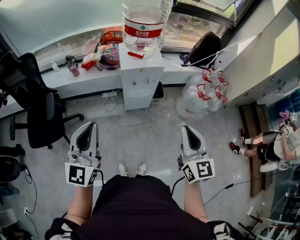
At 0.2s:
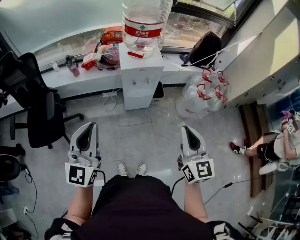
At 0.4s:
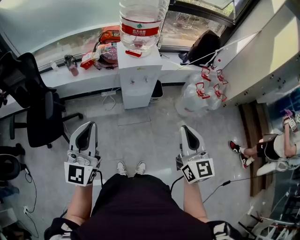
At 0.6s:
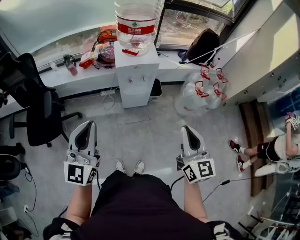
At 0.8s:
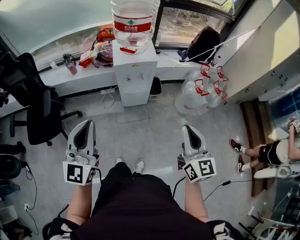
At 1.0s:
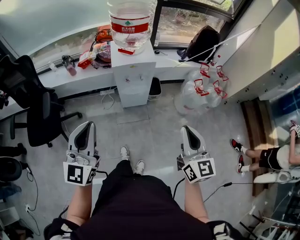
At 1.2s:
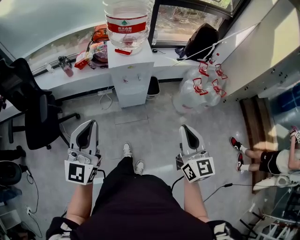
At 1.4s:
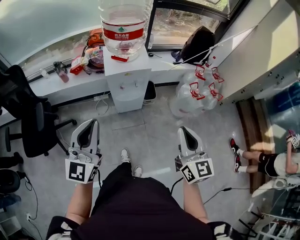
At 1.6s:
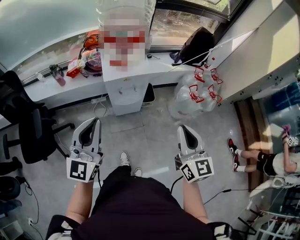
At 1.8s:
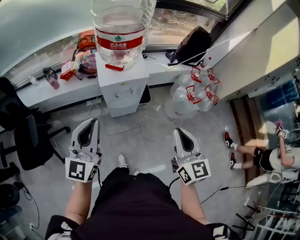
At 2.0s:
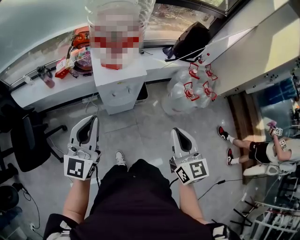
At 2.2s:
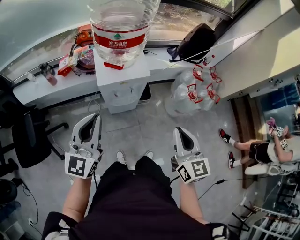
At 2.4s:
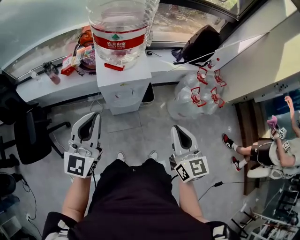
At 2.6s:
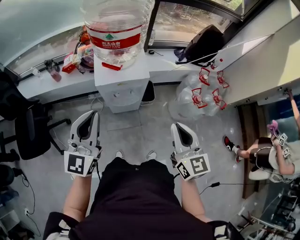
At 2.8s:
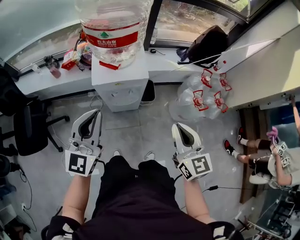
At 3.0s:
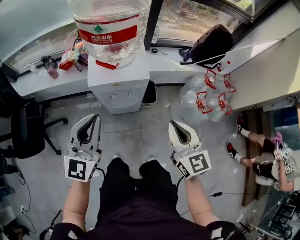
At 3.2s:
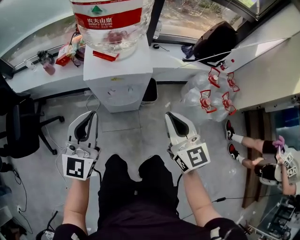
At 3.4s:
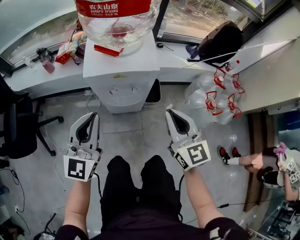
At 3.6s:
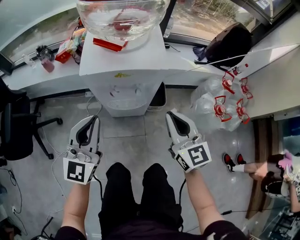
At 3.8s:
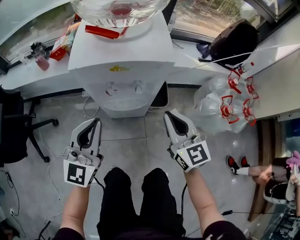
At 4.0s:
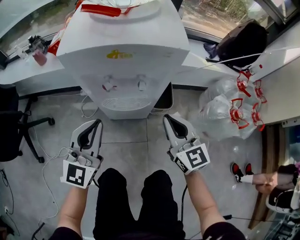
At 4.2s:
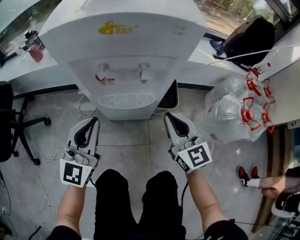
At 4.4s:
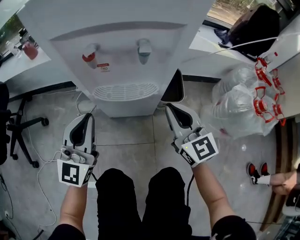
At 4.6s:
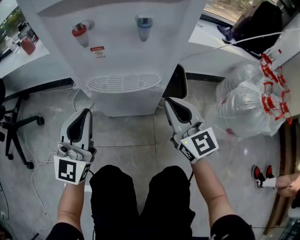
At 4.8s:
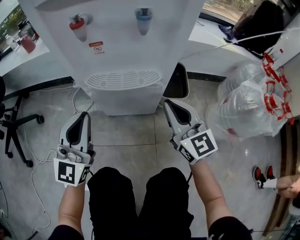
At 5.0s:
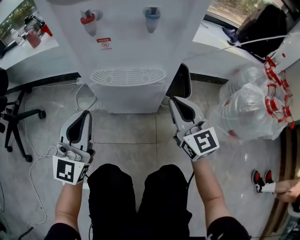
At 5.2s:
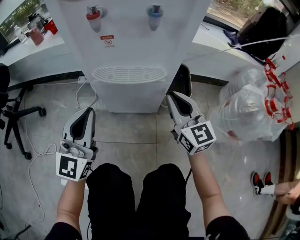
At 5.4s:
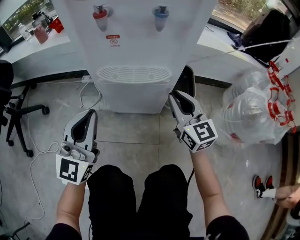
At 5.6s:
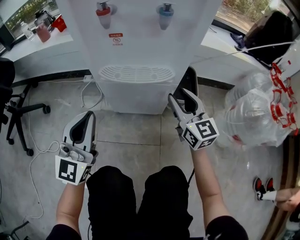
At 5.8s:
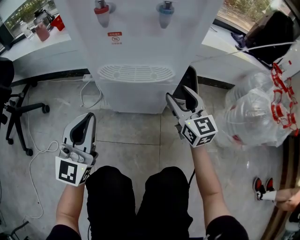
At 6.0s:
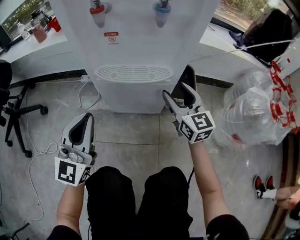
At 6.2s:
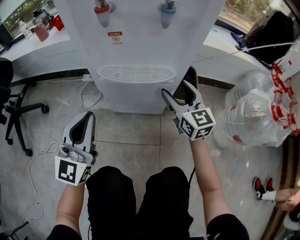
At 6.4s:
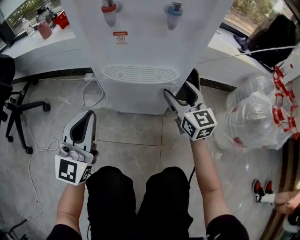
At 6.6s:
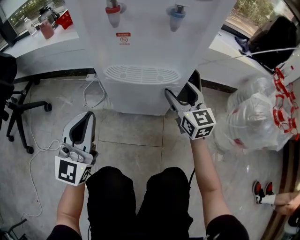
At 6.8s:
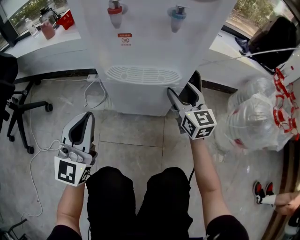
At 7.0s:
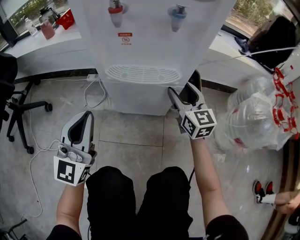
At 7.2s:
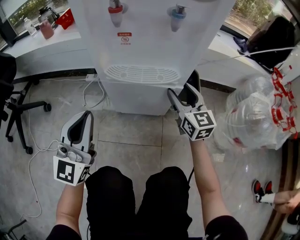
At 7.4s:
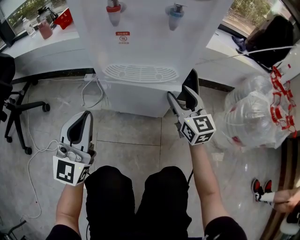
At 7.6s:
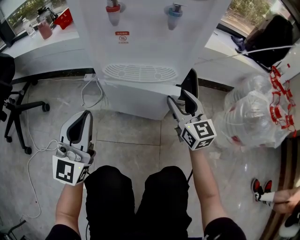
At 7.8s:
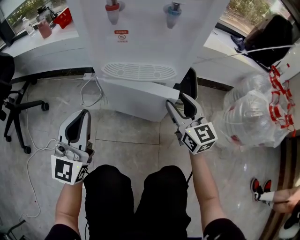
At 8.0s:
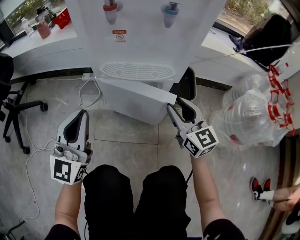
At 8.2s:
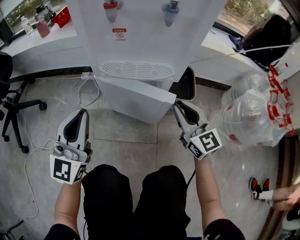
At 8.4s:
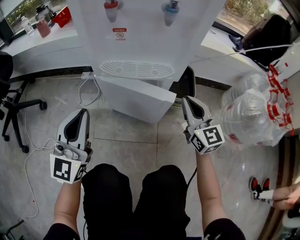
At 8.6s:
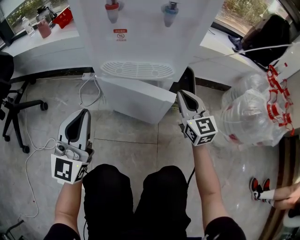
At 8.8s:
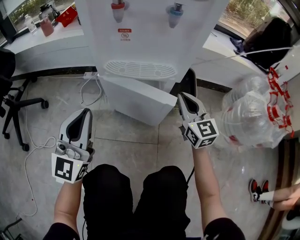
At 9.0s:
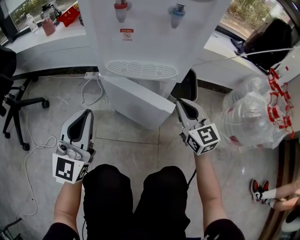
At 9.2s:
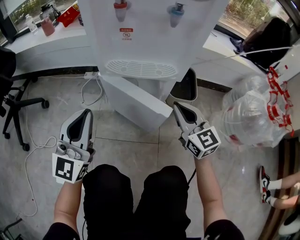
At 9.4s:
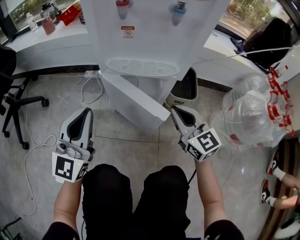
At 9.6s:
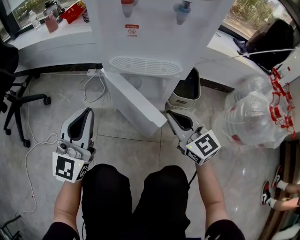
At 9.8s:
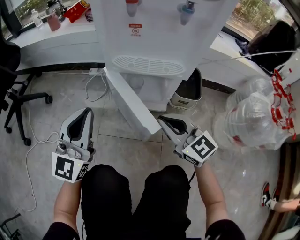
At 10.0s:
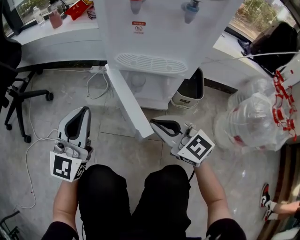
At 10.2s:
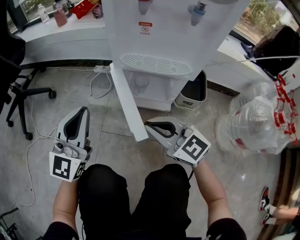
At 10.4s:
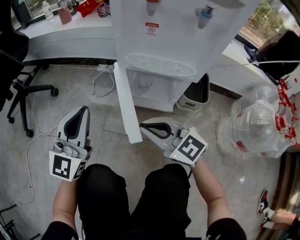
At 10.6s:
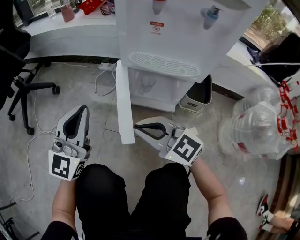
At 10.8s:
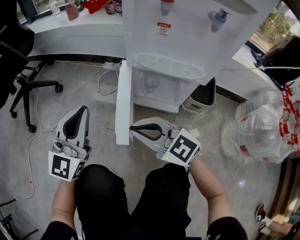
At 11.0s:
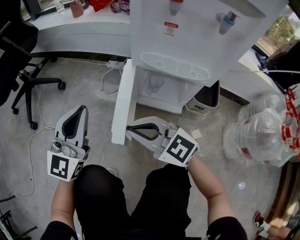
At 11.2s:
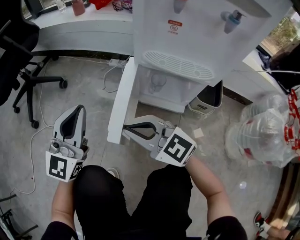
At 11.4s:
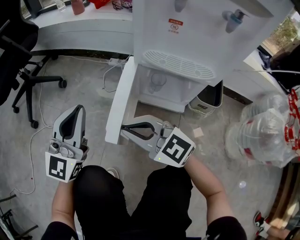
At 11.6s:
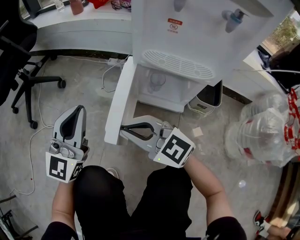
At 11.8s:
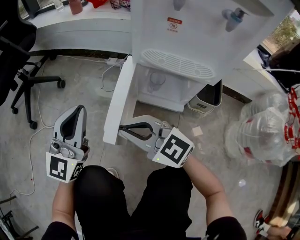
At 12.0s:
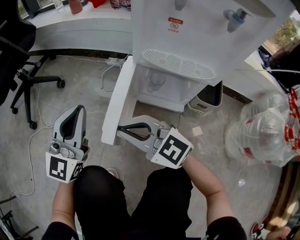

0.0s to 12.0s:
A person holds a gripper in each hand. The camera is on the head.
0.0s to 1.6s: The right gripper heads forward, covering approximately 10 cm, while the left gripper heads forward and to the right, covering approximately 15 cm.
1.6s to 3.0s: The right gripper goes about 20 cm forward and downward. Meanwhile the left gripper heads forward, downward and to the right, covering roughly 15 cm.
3.0s to 4.4s: Both grippers move downward, roughly 50 cm.
4.4s to 6.0s: The right gripper moves downward and forward, about 15 cm, and opens, while the left gripper shifts roughly 10 cm downward.
6.0s to 7.6s: The grippers make only small movements.
7.6s to 9.0s: The right gripper closes.
9.0s to 10.4s: The right gripper travels to the left by some 20 cm, and rotates roughly 40 degrees. The left gripper travels to the left by approximately 5 cm.
10.4s to 12.0s: The right gripper is displaced to the left by roughly 10 cm.

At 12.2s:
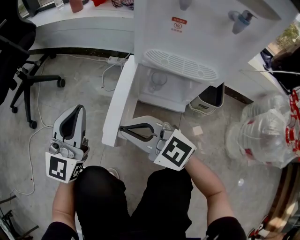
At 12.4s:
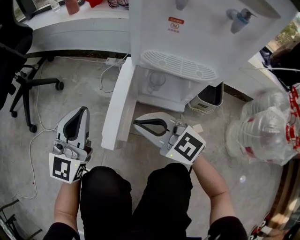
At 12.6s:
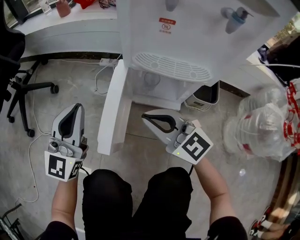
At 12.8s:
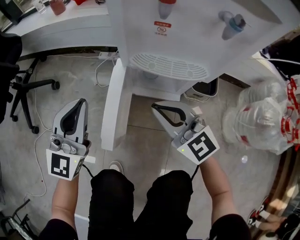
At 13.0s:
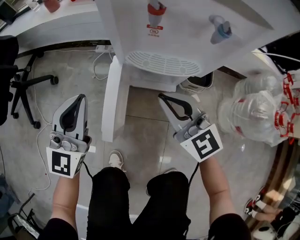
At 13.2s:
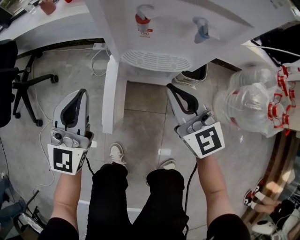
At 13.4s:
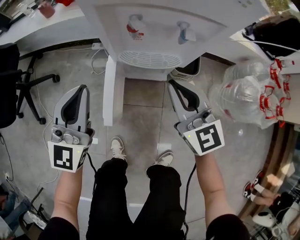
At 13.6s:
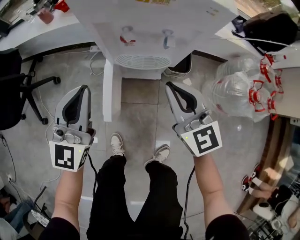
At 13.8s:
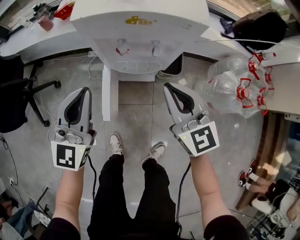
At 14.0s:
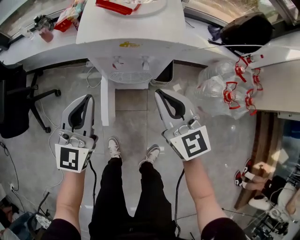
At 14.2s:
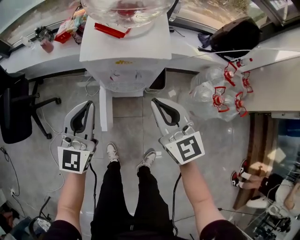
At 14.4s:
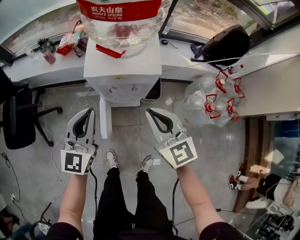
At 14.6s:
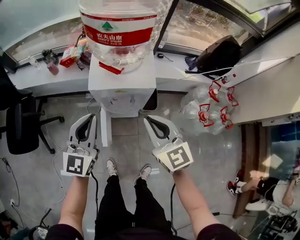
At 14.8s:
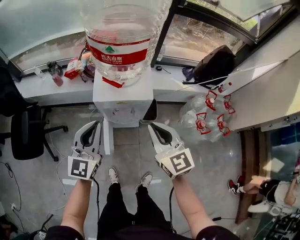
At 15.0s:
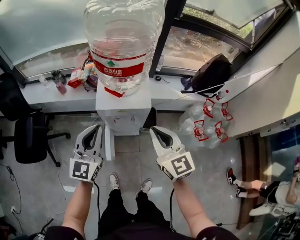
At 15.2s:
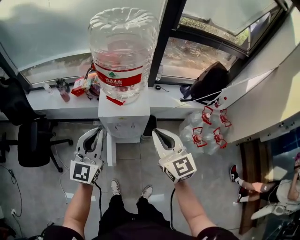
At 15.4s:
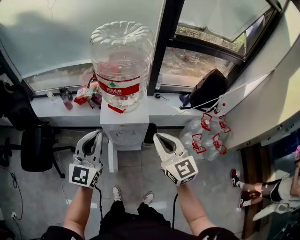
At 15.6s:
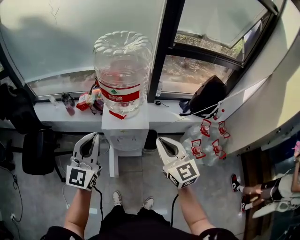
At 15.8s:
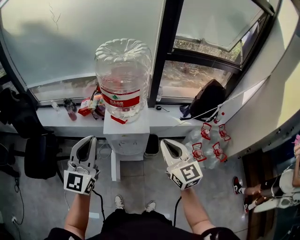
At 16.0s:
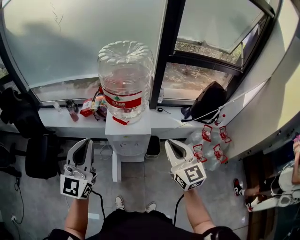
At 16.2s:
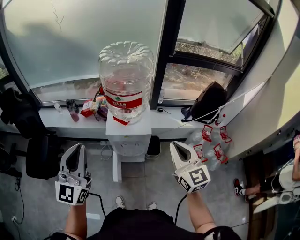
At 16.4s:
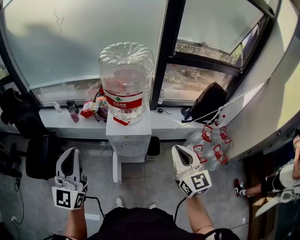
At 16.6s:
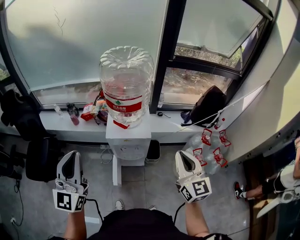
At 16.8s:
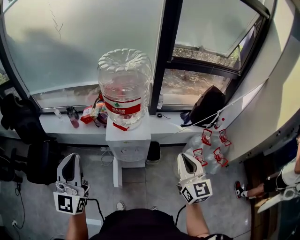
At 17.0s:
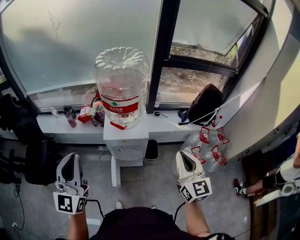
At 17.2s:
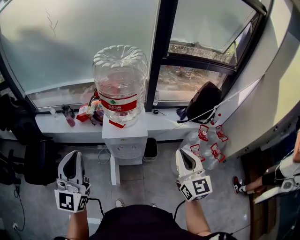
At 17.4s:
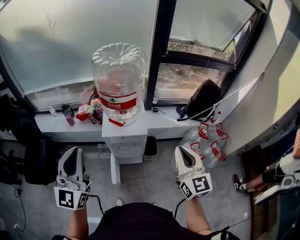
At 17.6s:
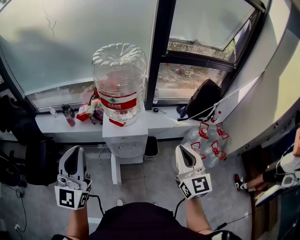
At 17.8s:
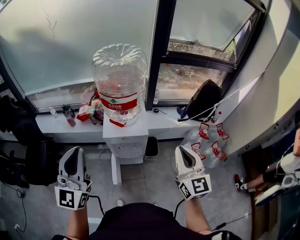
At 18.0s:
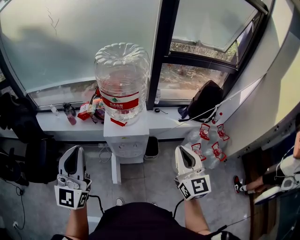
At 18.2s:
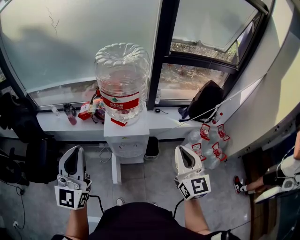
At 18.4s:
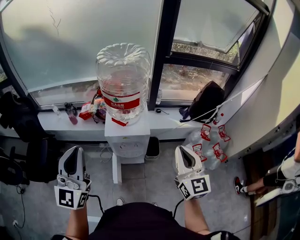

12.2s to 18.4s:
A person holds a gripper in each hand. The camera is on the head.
12.2s to 13.8s: Both grippers move upward, roughly 30 cm. The right gripper changes its angle by roughly 50 degrees.
13.8s to 15.4s: Both grippers travel together upward, some 35 cm.
15.4s to 16.8s: The left gripper travels upward, backward and to the left by some 15 cm; the right gripper is displaced to the right and backward by some 10 cm.
16.8s to 18.4s: The grippers make only small movements.

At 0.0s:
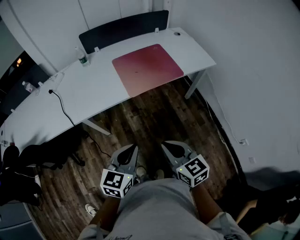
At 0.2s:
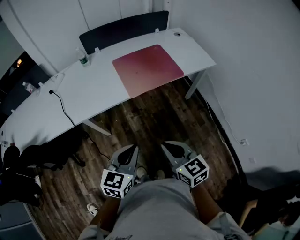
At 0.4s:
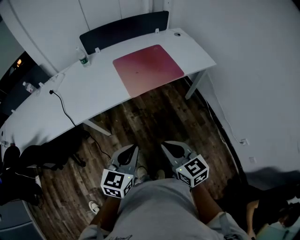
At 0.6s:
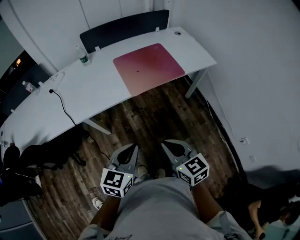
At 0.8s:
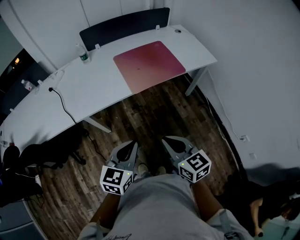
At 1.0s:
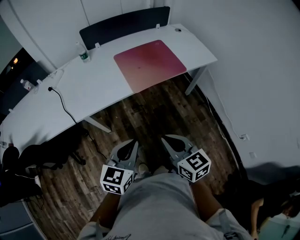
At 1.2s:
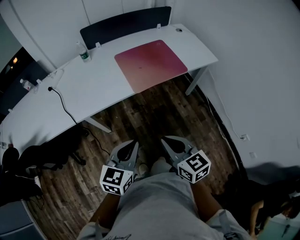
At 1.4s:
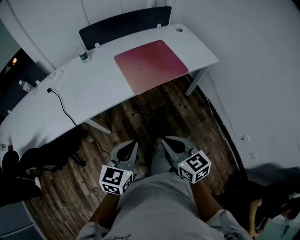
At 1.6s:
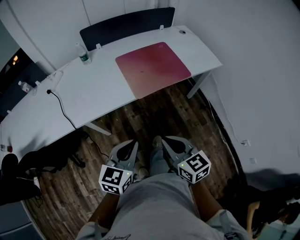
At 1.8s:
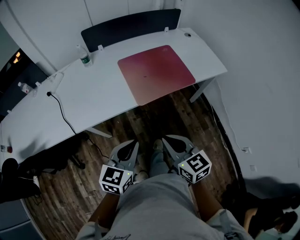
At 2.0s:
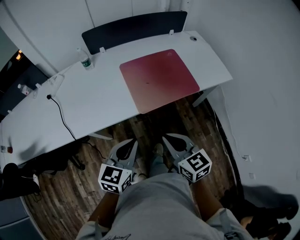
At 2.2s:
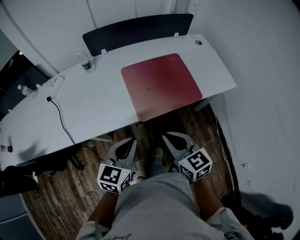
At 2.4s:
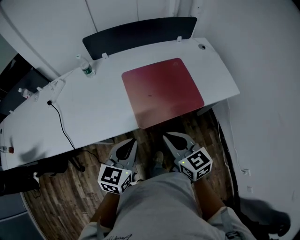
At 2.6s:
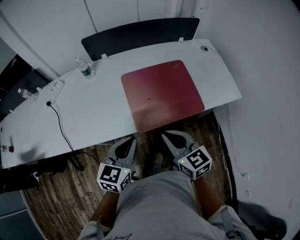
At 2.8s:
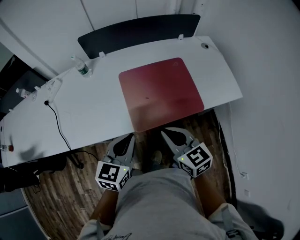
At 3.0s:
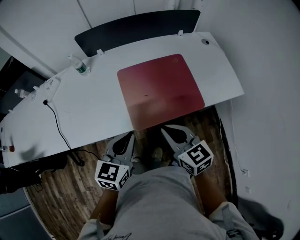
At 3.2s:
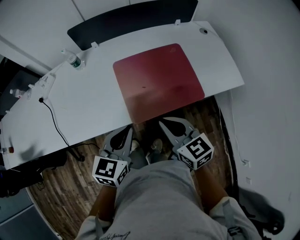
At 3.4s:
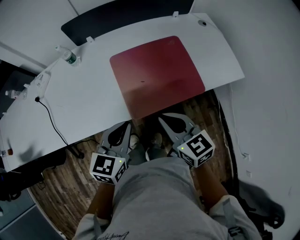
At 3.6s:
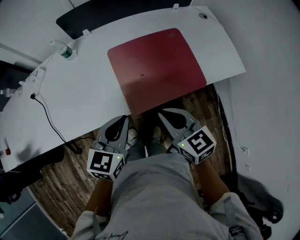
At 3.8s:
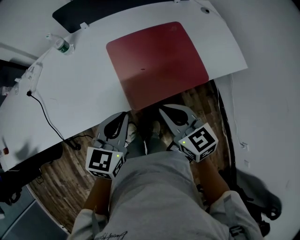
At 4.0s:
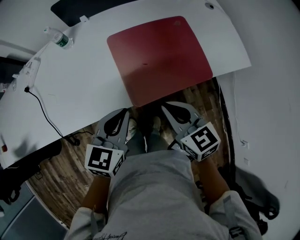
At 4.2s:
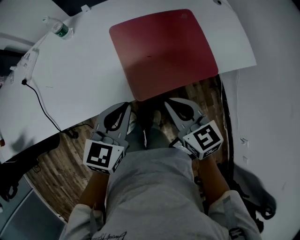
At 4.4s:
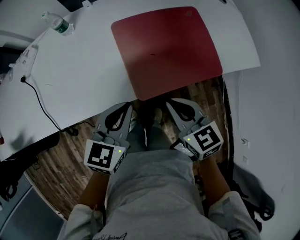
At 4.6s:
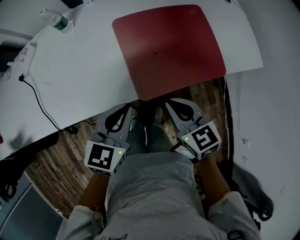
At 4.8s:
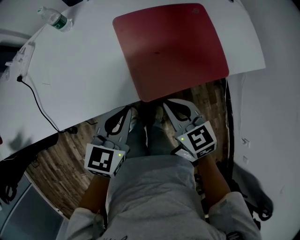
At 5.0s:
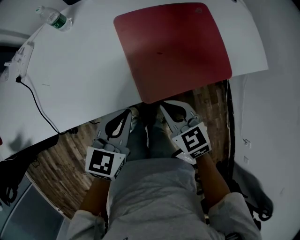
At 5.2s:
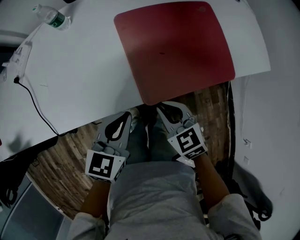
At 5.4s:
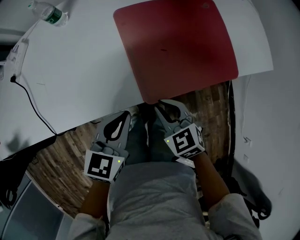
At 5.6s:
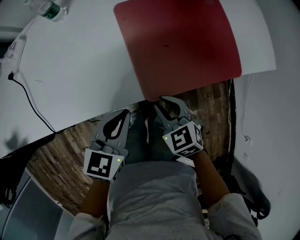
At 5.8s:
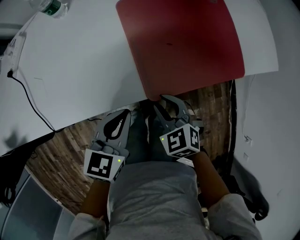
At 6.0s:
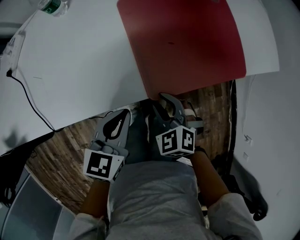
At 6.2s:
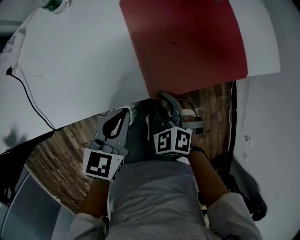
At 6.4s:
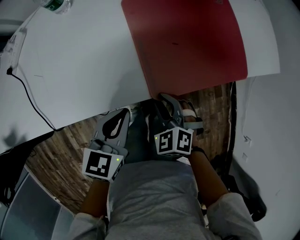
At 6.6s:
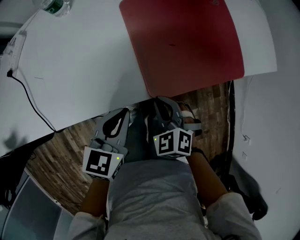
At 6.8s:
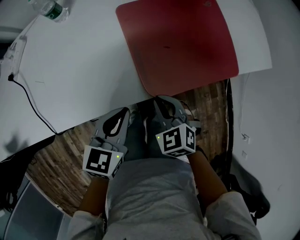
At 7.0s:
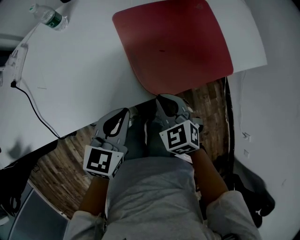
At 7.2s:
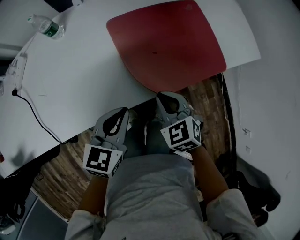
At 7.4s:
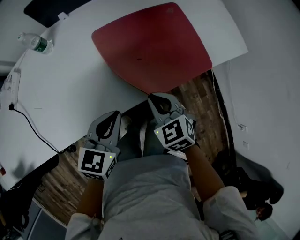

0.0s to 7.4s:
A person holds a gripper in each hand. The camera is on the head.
0.0s to 1.4s: The right gripper changes place by about 5 cm, while the left gripper ends up about 5 cm from where it was.
1.4s to 3.0s: The grippers both shift forward by about 30 cm.
3.0s to 4.4s: Both grippers travel together downward, roughly 5 cm.
4.4s to 6.0s: The left gripper goes some 10 cm downward. The right gripper heads downward and to the left, covering about 15 cm, turns by about 40 degrees, and opens its fingers.
6.0s to 7.4s: The right gripper heads upward, covering about 10 cm, changes its angle by some 20 degrees, and closes its fingers. The left gripper is displaced upward by roughly 5 cm.
